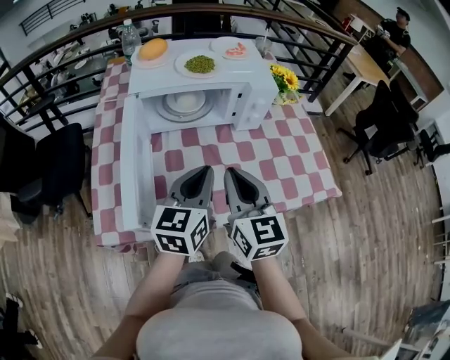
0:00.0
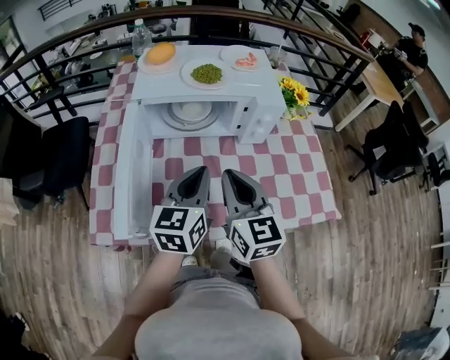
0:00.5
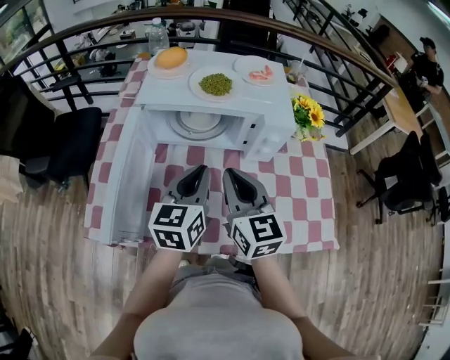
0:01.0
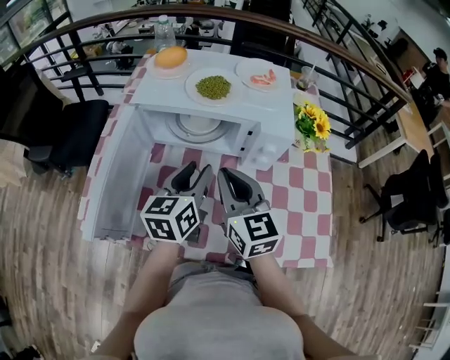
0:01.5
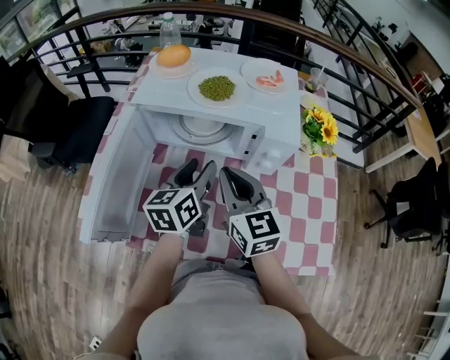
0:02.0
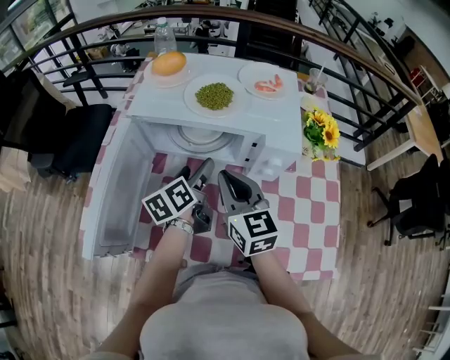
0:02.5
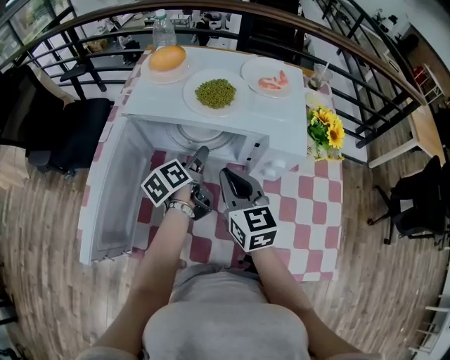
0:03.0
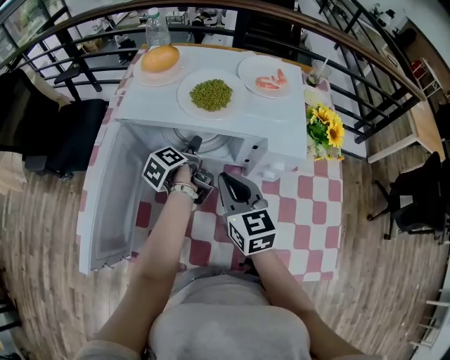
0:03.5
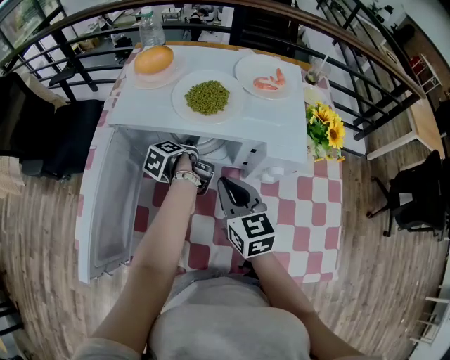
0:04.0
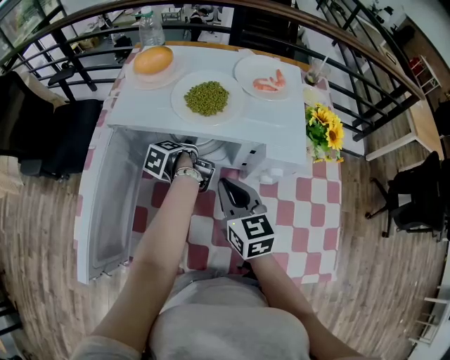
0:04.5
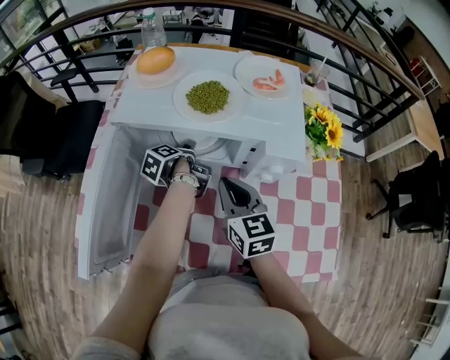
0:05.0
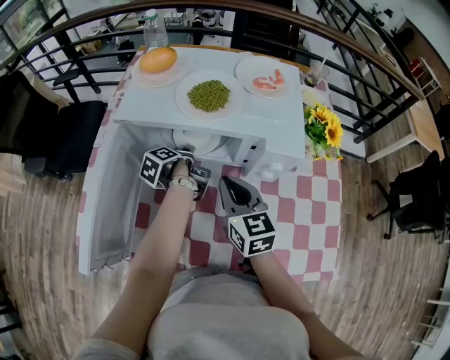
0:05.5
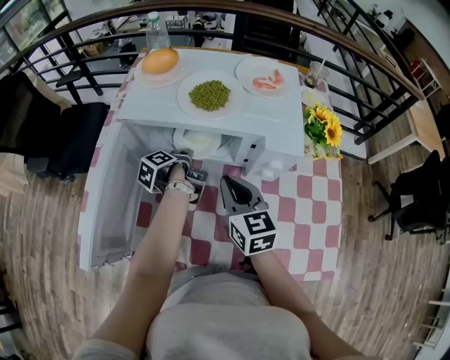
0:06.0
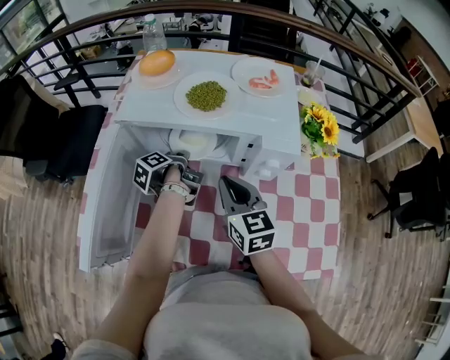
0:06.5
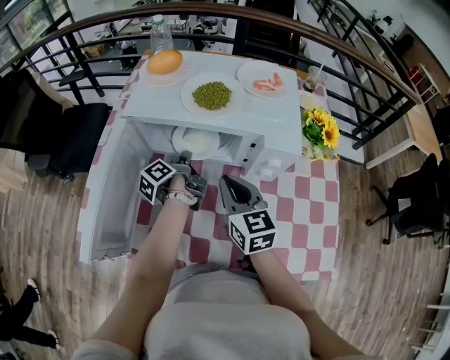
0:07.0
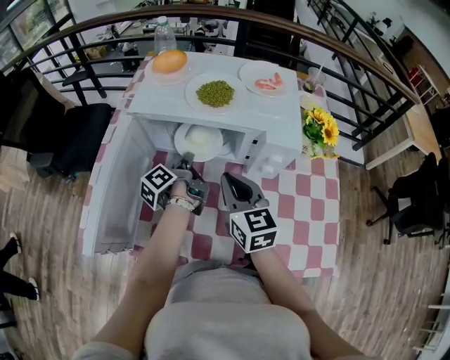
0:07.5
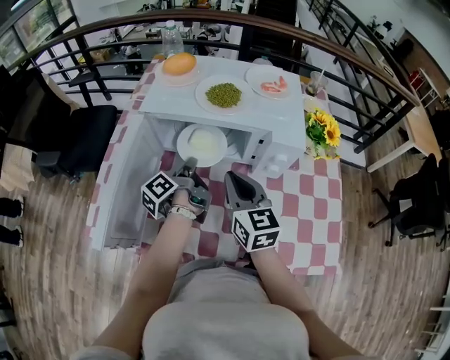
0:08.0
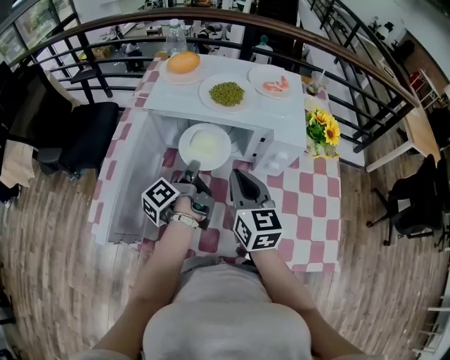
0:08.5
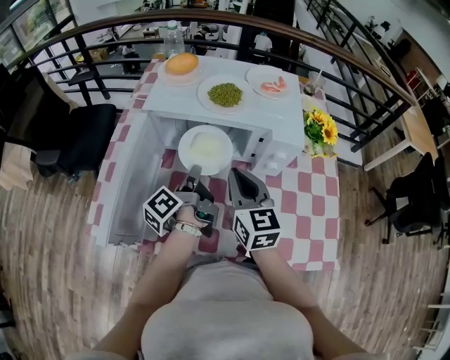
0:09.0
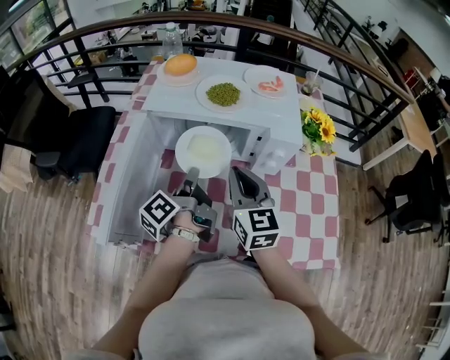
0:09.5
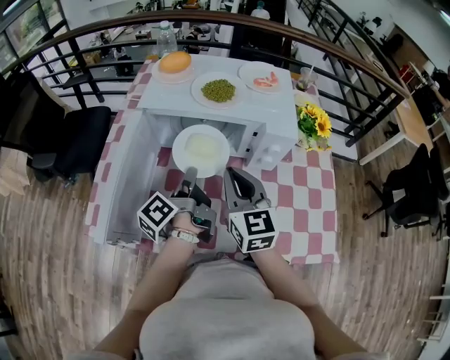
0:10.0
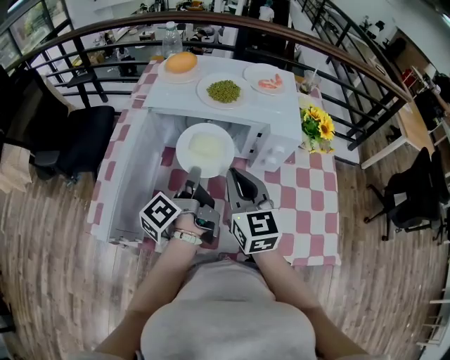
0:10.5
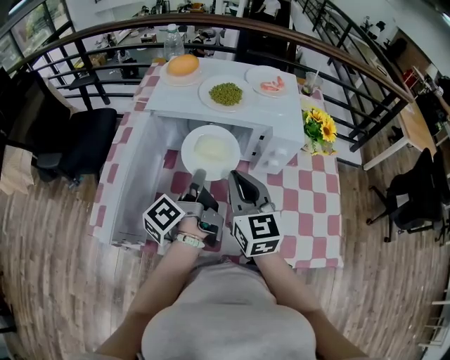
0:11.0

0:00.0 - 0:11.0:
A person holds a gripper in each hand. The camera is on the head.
0:00.0 - 0:02.0: The grippers both shift forward by approximately 15 cm. The right gripper changes its angle by some 30 degrees. The left gripper changes its angle by some 30 degrees, and opens up.
0:02.0 - 0:03.5: The left gripper heads downward and forward, covering some 20 cm, rotates around the line of its fingers by about 50 degrees, counterclockwise from behind, and opens. Meanwhile the right gripper moves downward, roughly 5 cm.
0:03.5 - 0:05.5: The left gripper closes up.
0:05.5 - 0:07.5: The left gripper moves upward, approximately 5 cm, turns by about 20 degrees, and closes its fingers.
0:07.5 - 0:09.0: The left gripper is displaced backward and upward by approximately 10 cm.
0:09.0 - 0:11.0: The grippers stay close to where they were, moving slightly.

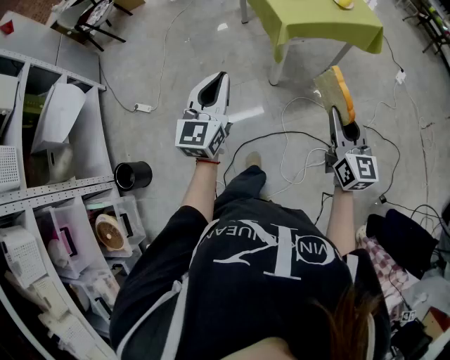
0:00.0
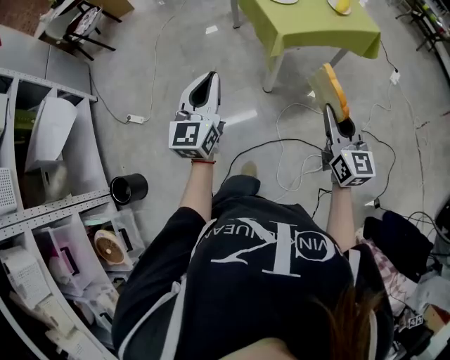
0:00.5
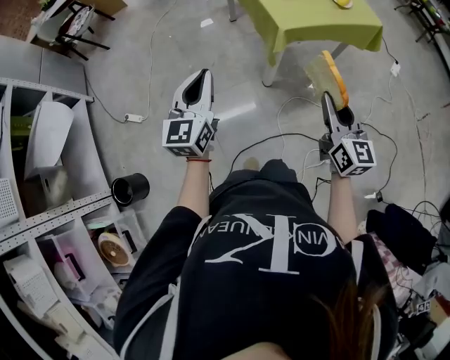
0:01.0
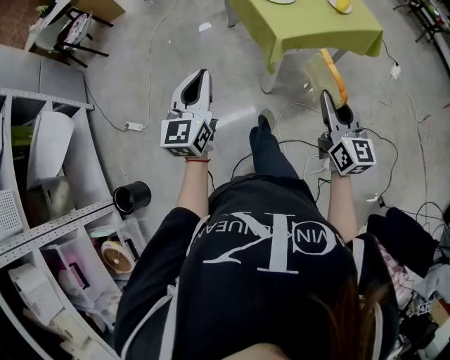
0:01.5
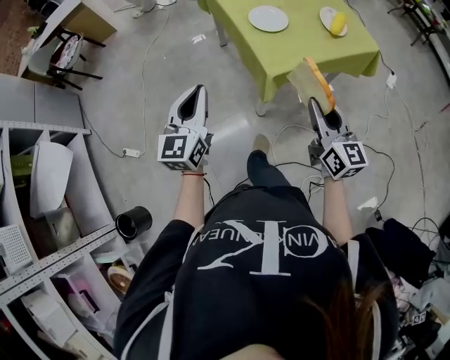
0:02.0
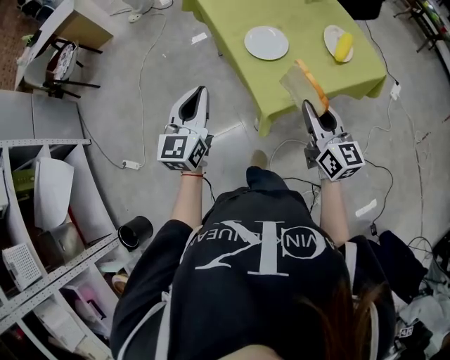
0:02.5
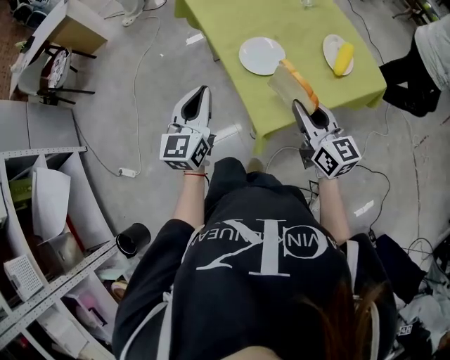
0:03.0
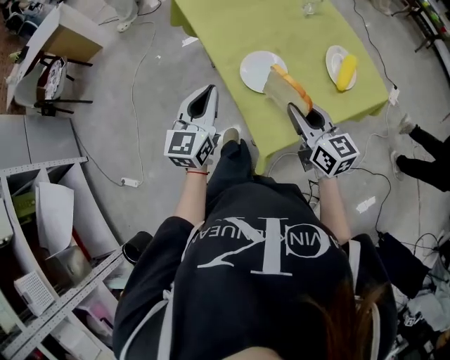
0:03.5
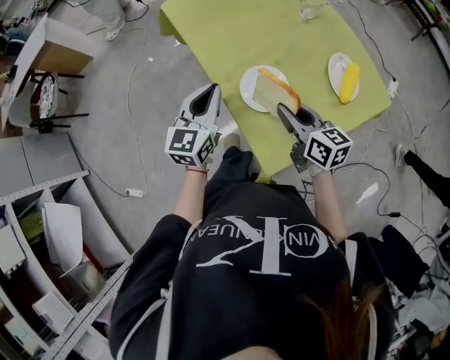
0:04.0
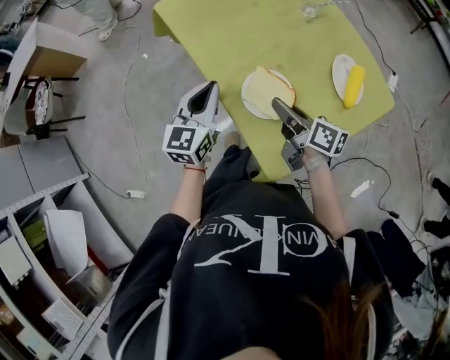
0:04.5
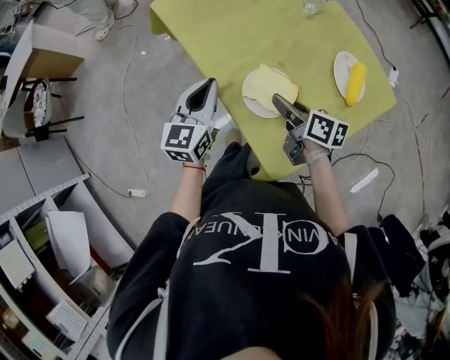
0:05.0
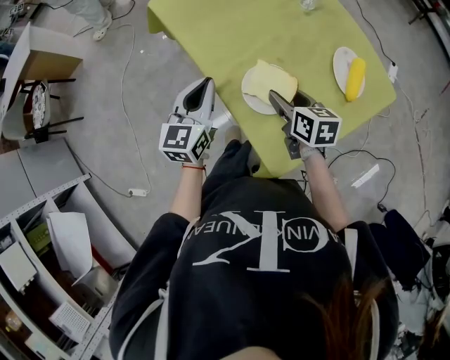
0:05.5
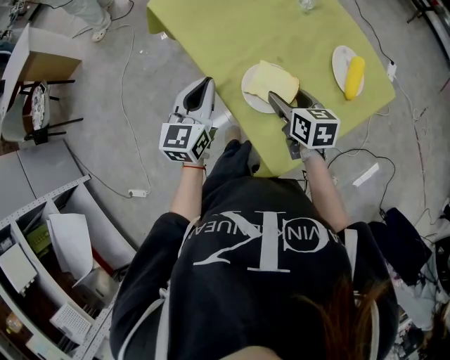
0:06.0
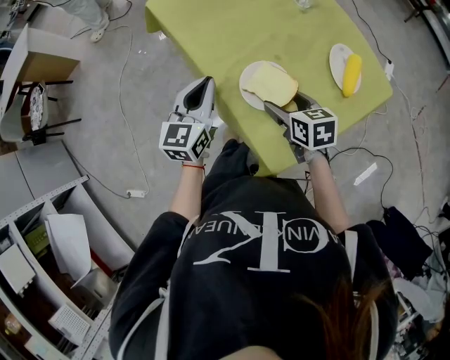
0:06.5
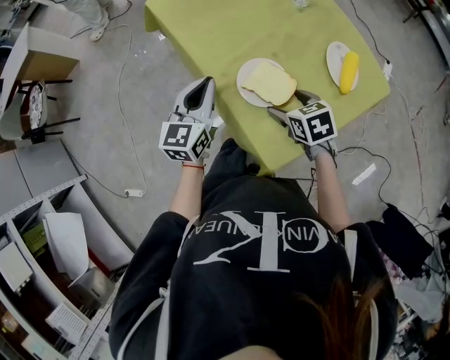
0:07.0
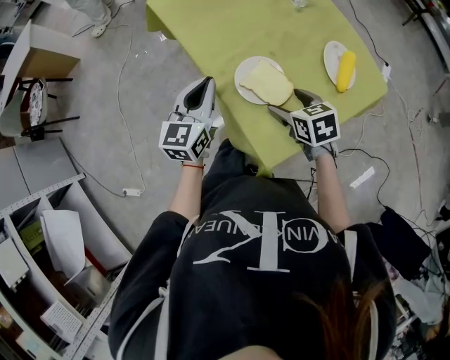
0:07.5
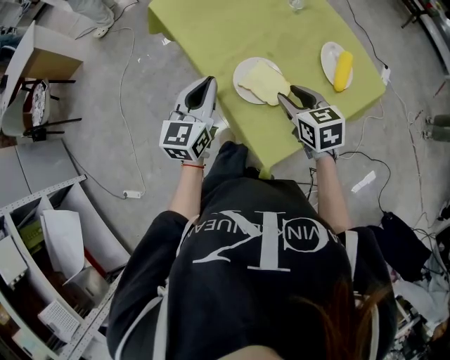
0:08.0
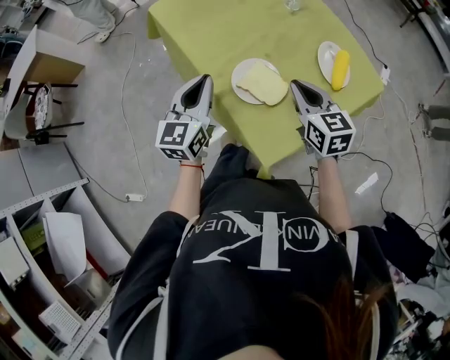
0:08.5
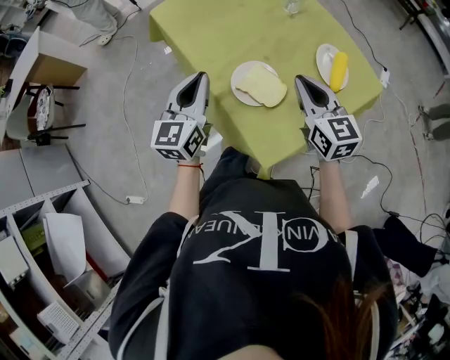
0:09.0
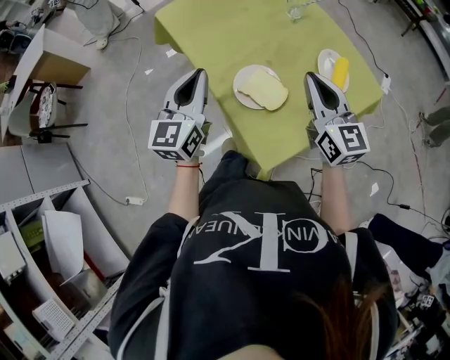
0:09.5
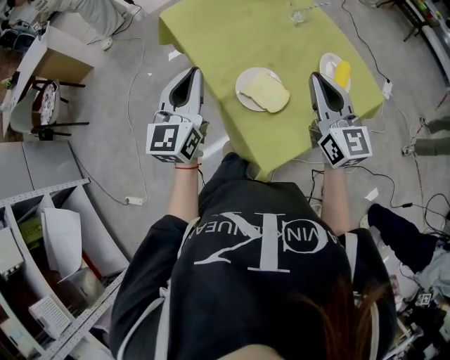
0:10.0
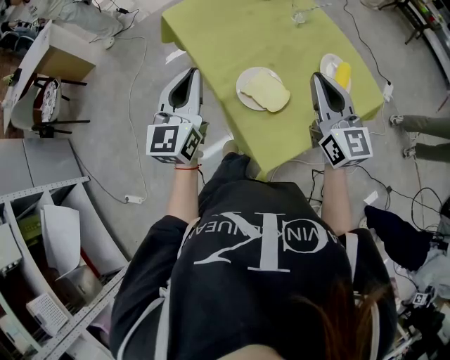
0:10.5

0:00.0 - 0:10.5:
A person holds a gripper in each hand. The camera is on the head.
0:00.0 - 0:02.0: The two grippers go roughly 30 cm forward.
0:02.0 - 0:04.0: Both grippers move forward, some 35 cm. The right gripper turns by some 30 degrees.
0:04.0 - 0:06.5: The right gripper travels downward by roughly 5 cm, turns by some 20 degrees, and opens up.
0:06.5 - 0:08.5: The right gripper shifts about 10 cm upward, turns by approximately 20 degrees, and closes, while the left gripper shifts by about 5 cm.
0:08.5 - 0:10.5: The grippers both shift upward by roughly 10 cm. The right gripper turns by roughly 30 degrees.

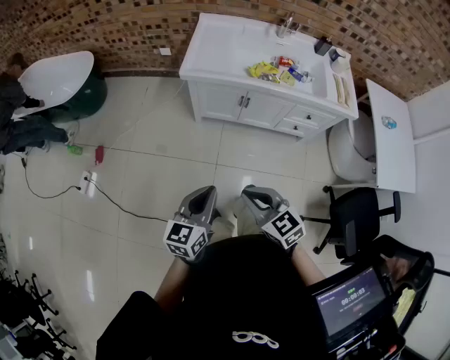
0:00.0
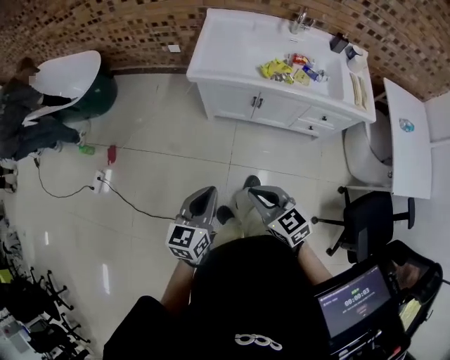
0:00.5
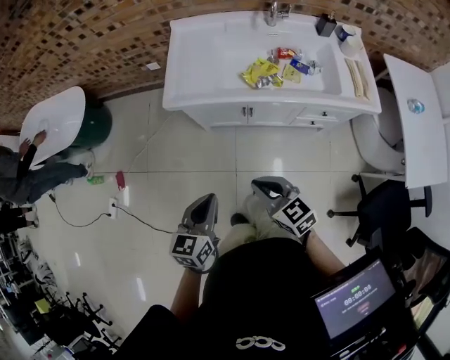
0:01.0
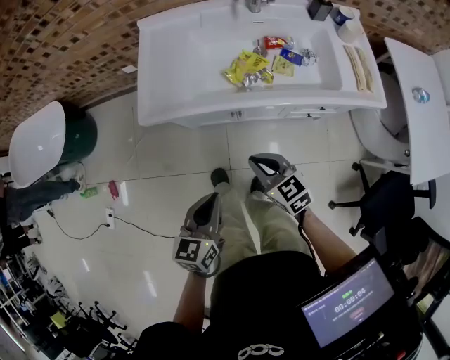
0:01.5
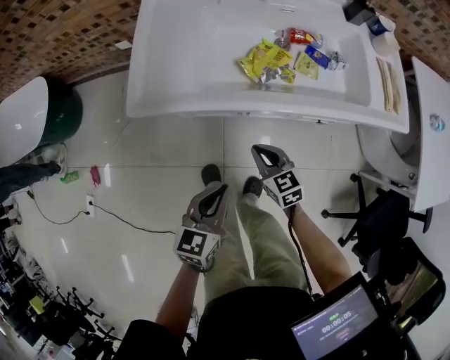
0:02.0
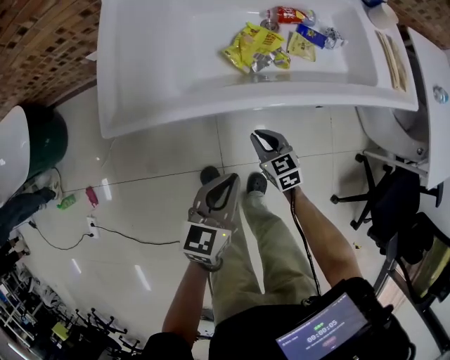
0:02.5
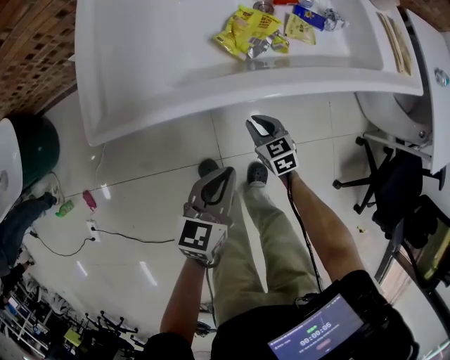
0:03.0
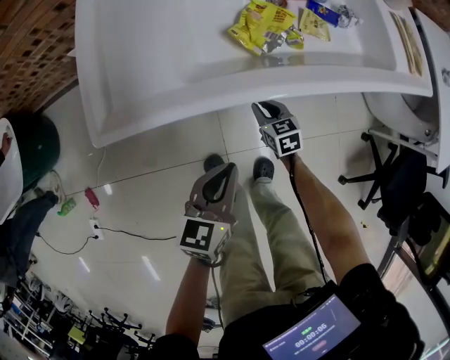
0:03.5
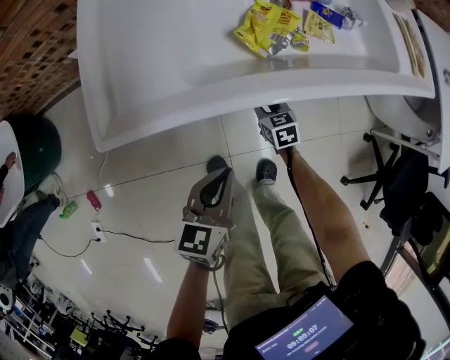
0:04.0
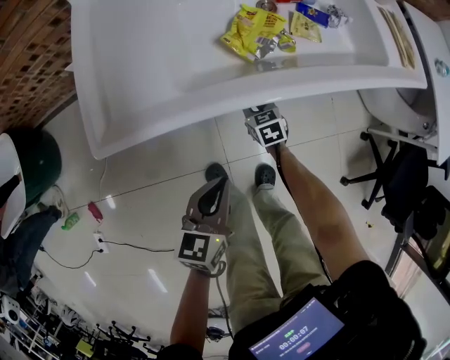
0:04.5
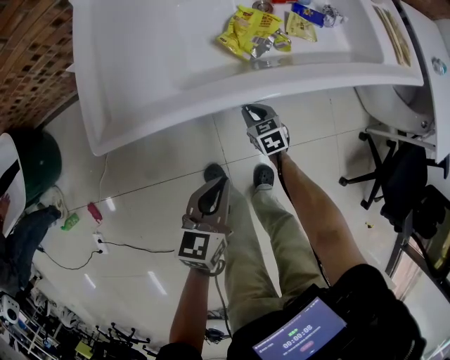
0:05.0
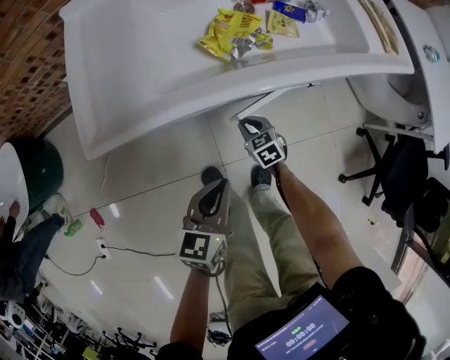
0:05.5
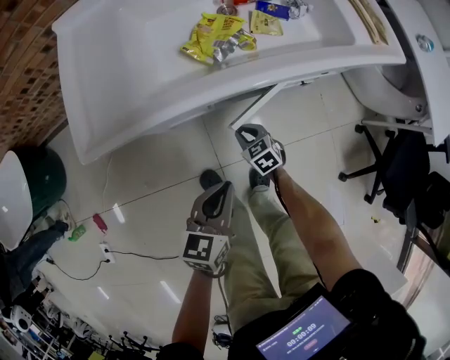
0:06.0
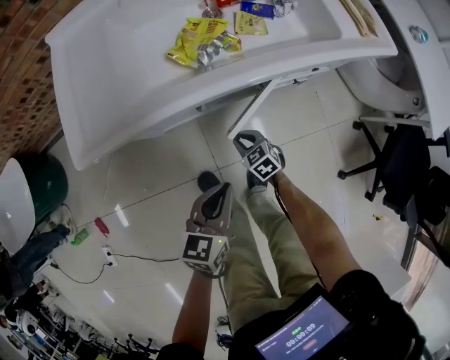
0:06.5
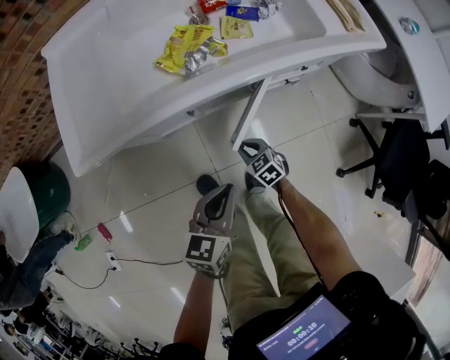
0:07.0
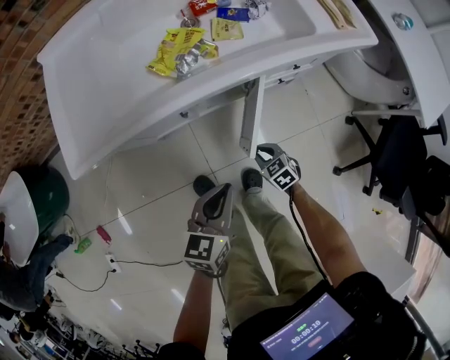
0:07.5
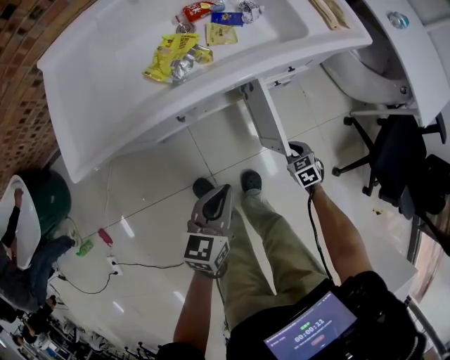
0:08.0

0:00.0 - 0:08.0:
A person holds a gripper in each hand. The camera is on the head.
0:00.0 - 0:02.0: Both grippers travel together forward and downward, about 40 cm. The right gripper changes its angle by roughly 20 degrees.
0:02.0 - 0:04.0: The right gripper moves downward and forward, approximately 25 cm, and changes its angle by approximately 20 degrees. Meanwhile the left gripper heads downward, forward and to the left, covering some 15 cm.
0:04.0 - 0:06.0: The left gripper is displaced to the right and backward by some 10 cm. The right gripper travels backward by some 10 cm.
0:06.0 - 0:08.0: The right gripper goes about 25 cm to the right. Meanwhile the left gripper goes about 10 cm to the right.
